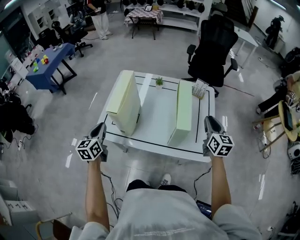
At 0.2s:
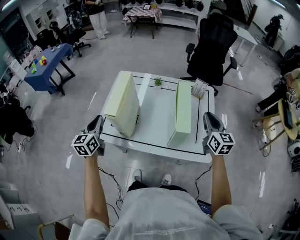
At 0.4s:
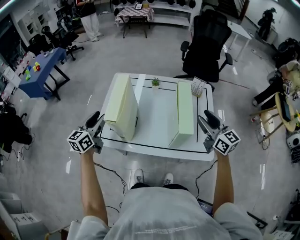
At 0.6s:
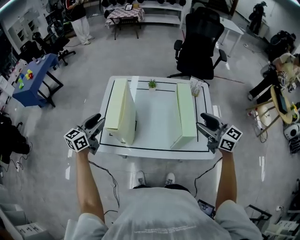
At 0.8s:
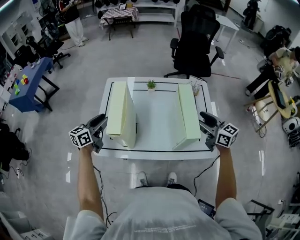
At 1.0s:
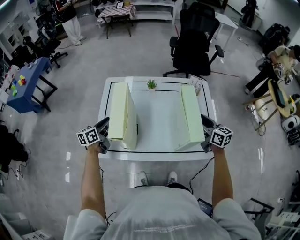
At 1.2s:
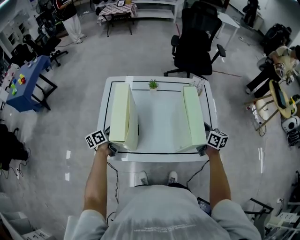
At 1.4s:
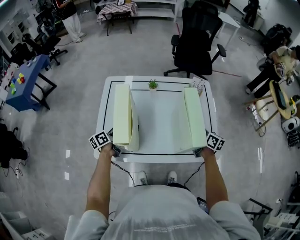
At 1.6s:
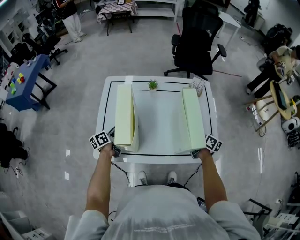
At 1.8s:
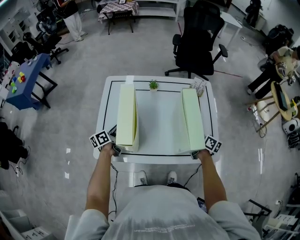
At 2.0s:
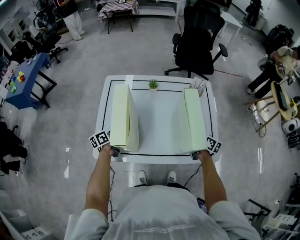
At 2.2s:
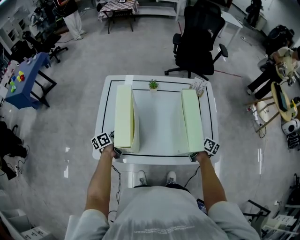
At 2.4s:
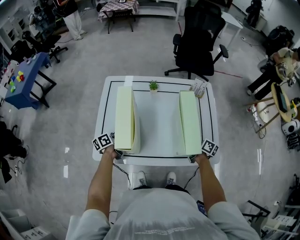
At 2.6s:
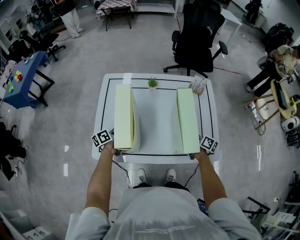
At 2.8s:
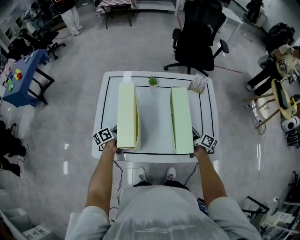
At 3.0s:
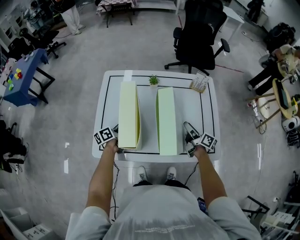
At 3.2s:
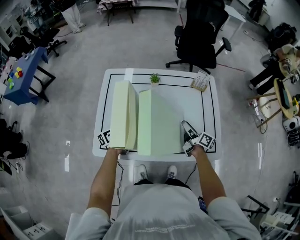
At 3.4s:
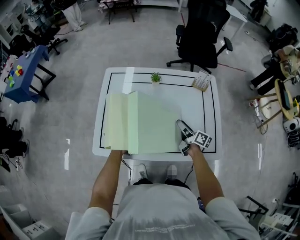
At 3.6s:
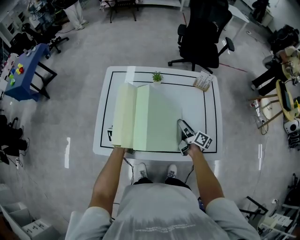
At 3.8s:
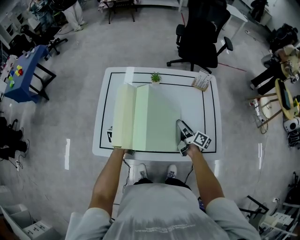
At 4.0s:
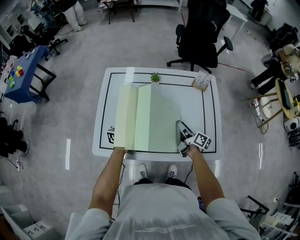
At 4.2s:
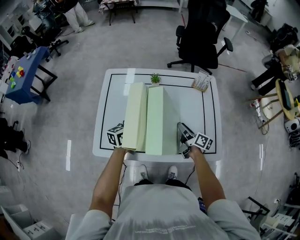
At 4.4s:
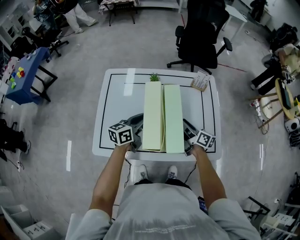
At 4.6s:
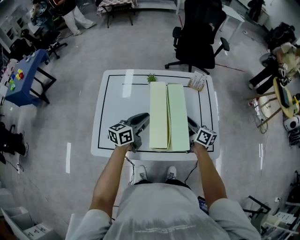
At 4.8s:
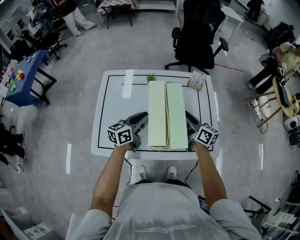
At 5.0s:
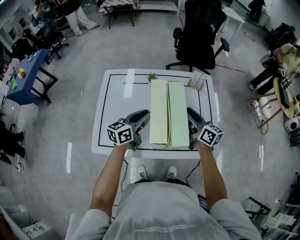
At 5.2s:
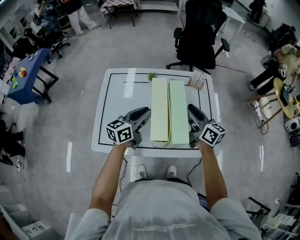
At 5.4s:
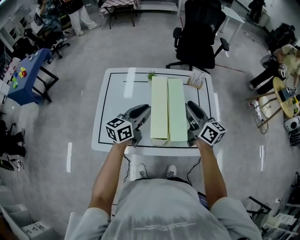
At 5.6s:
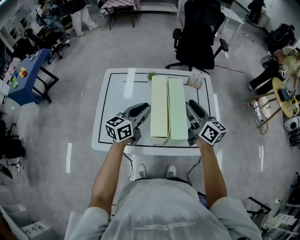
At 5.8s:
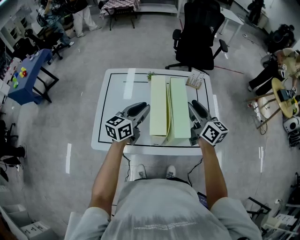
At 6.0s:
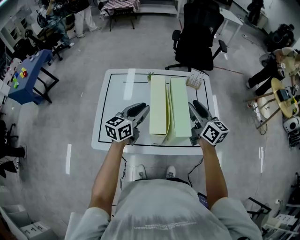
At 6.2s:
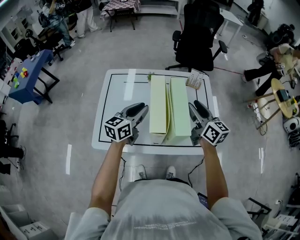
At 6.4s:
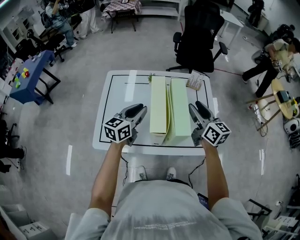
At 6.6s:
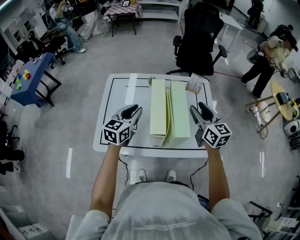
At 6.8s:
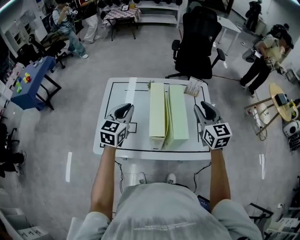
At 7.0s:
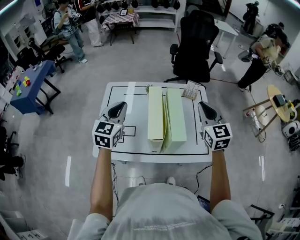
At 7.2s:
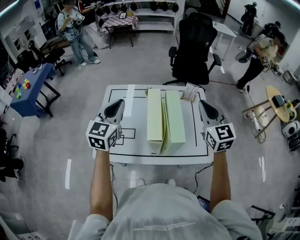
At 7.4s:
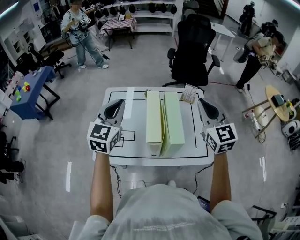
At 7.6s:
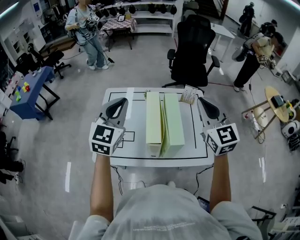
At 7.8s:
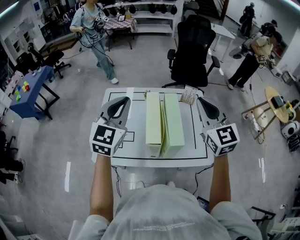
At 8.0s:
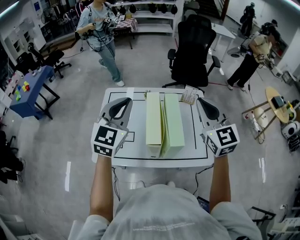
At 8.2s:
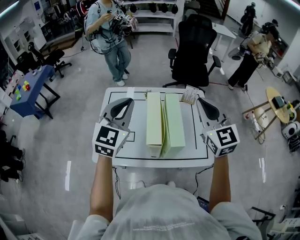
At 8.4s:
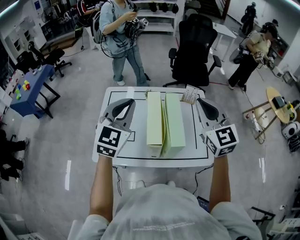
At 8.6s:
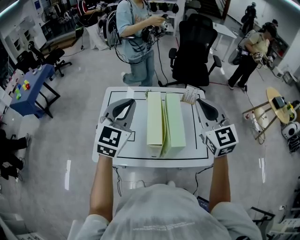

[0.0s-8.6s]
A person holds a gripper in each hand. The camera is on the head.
0.0s to 1.4s: The left gripper goes about 20 cm forward and downward, and turns by about 50 degrees, while the right gripper travels downward and to the left by approximately 15 cm, swivels approximately 40 degrees, and opens its fingers.
1.4s to 2.8s: The left gripper ends up approximately 5 cm from where it was, while the right gripper goes some 5 cm downward.
2.8s to 4.4s: The right gripper moves roughly 5 cm. The left gripper shifts roughly 15 cm to the right and upward, and swivels approximately 30 degrees.
4.4s to 5.8s: The right gripper moves upward, roughly 20 cm, and changes its angle by about 30 degrees. Meanwhile the left gripper moves upward, about 10 cm.
5.8s to 7.2s: The left gripper shifts some 15 cm upward and to the left, and rotates roughly 40 degrees. Meanwhile the right gripper shifts roughly 10 cm upward, rolls counterclockwise, seen from behind, by some 40 degrees, and closes its fingers.
7.2s to 8.6s: The right gripper ends up roughly 5 cm from where it was. Meanwhile the left gripper shifts roughly 5 cm to the right.

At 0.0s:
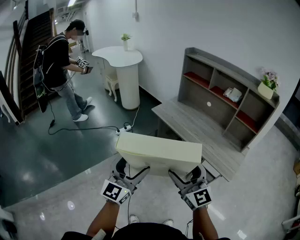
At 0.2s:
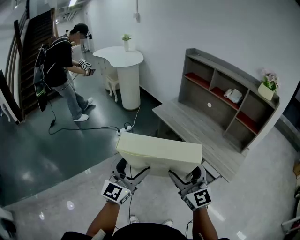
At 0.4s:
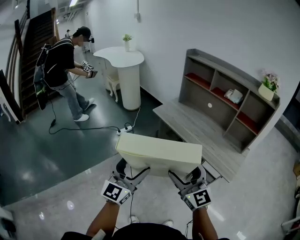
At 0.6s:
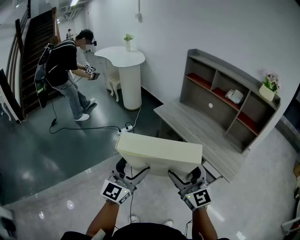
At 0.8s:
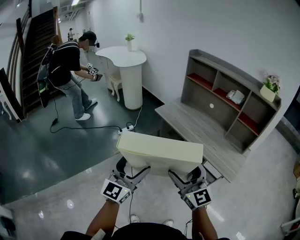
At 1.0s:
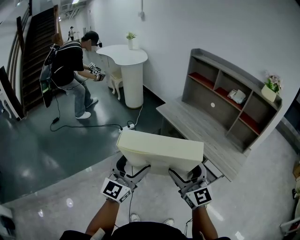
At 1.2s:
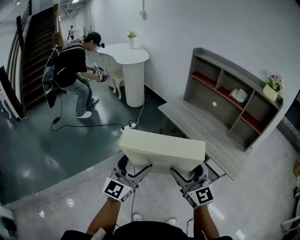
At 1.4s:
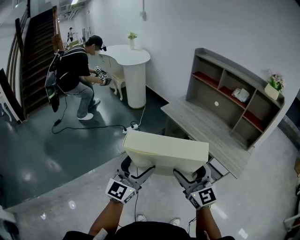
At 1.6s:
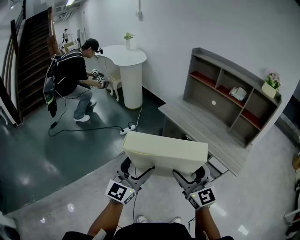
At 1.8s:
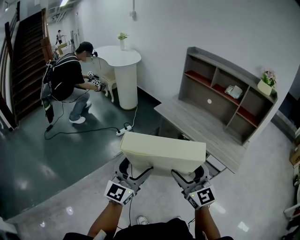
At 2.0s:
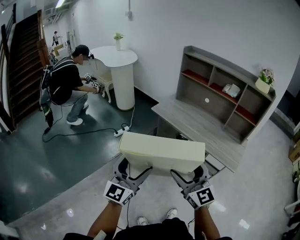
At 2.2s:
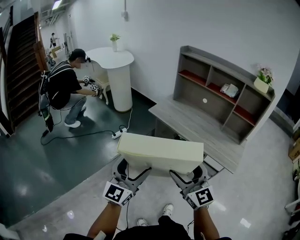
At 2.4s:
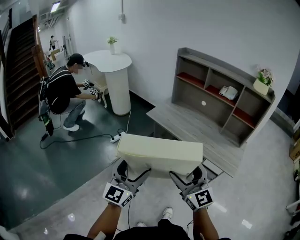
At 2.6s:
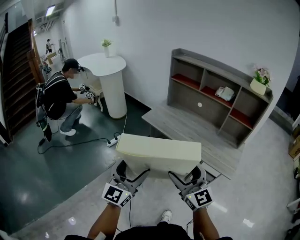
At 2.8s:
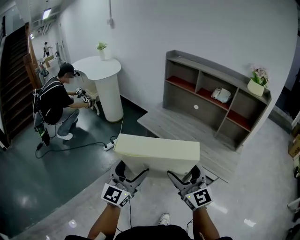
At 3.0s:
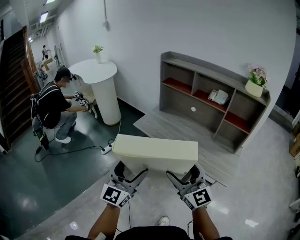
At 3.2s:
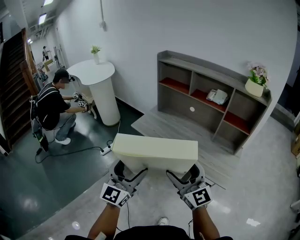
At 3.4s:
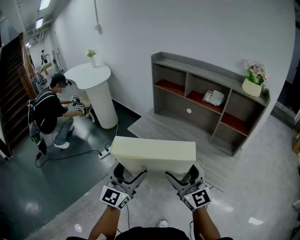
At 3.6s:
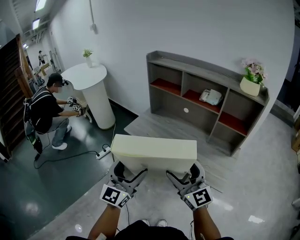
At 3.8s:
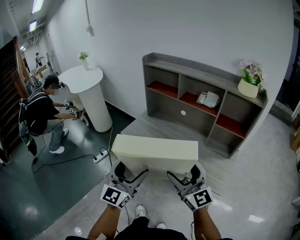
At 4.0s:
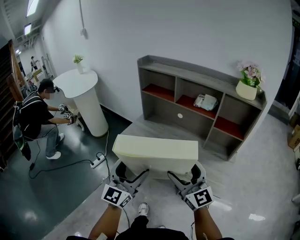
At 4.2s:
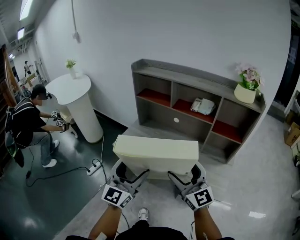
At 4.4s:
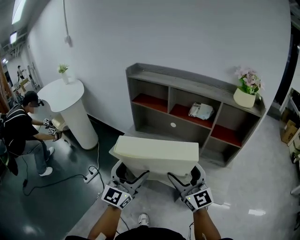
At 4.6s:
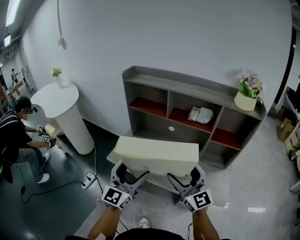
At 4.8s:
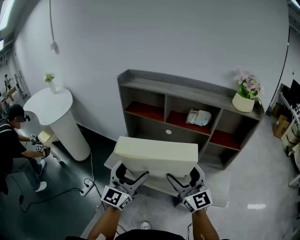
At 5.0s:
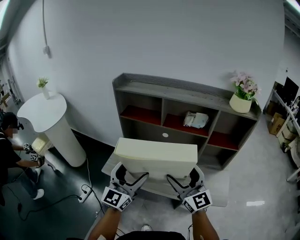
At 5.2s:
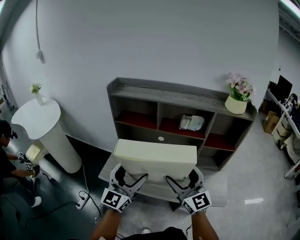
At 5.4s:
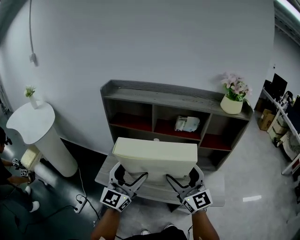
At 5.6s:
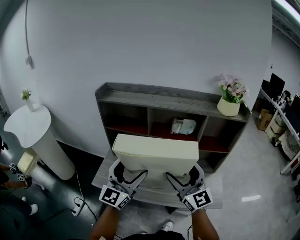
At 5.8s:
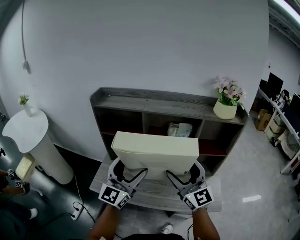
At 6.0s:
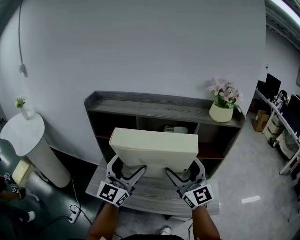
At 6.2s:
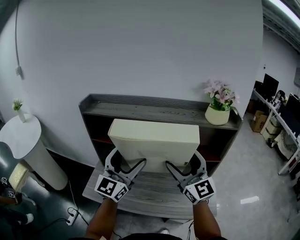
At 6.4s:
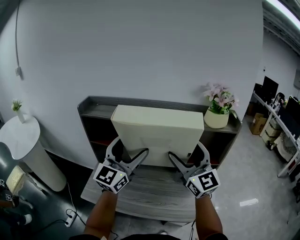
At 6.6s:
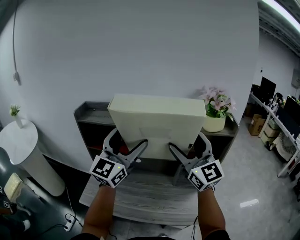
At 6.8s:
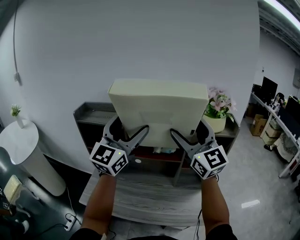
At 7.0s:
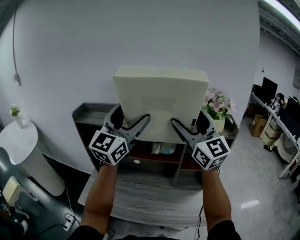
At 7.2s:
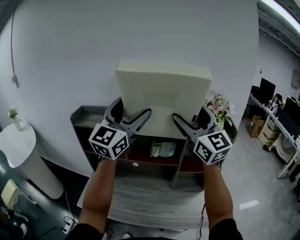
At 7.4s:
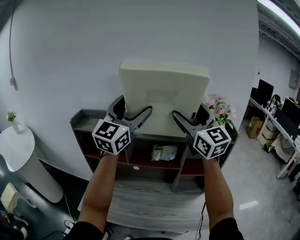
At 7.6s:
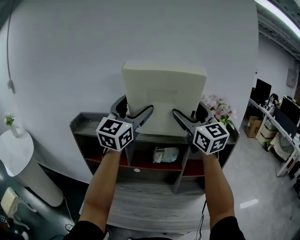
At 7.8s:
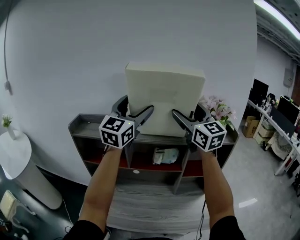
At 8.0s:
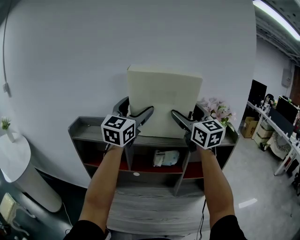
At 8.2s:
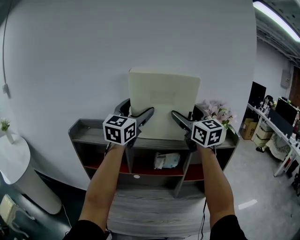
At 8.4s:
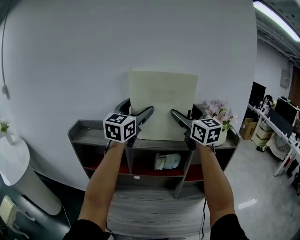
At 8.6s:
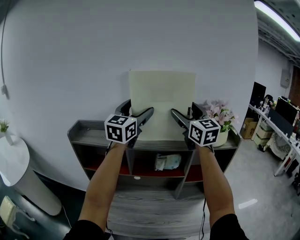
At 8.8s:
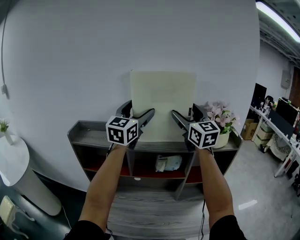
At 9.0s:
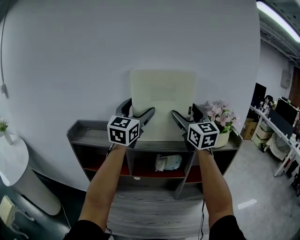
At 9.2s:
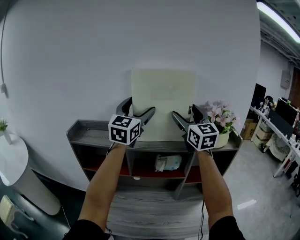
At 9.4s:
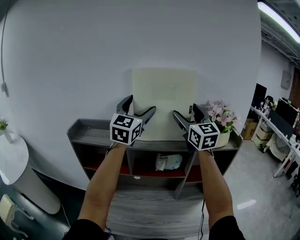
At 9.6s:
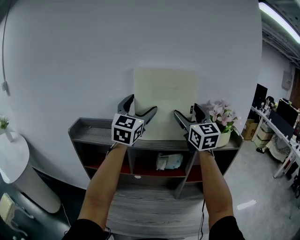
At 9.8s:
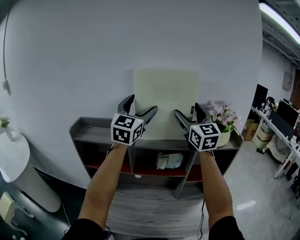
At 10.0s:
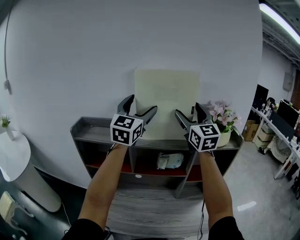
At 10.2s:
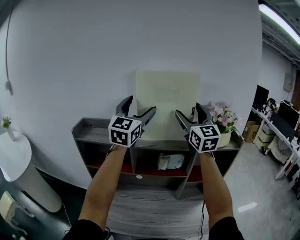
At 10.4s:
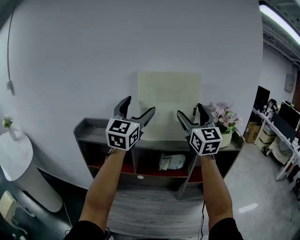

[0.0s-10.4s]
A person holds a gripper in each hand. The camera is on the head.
0.0s to 1.4s: Both grippers move to the left, approximately 5 cm.
1.4s to 3.0s: The two grippers go about 15 cm forward and to the right.
3.0s to 4.4s: The two grippers go about 25 cm forward and to the right.
4.4s to 6.0s: The right gripper goes roughly 15 cm forward and upward, while the left gripper is displaced forward by about 20 cm.
6.0s to 7.4s: Both grippers move upward and forward, about 30 cm.
7.4s to 9.0s: Both grippers move forward, about 10 cm.
9.0s to 10.4s: The left gripper moves backward, about 5 cm.

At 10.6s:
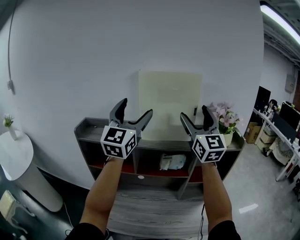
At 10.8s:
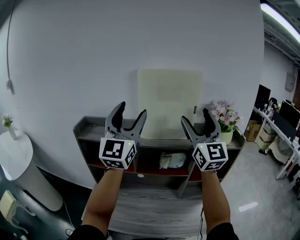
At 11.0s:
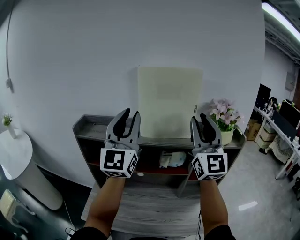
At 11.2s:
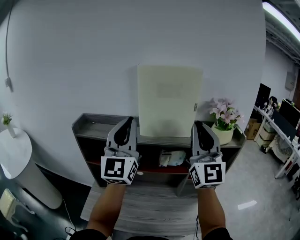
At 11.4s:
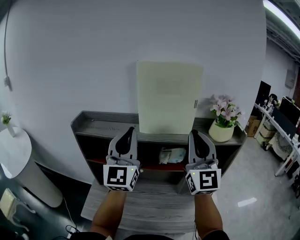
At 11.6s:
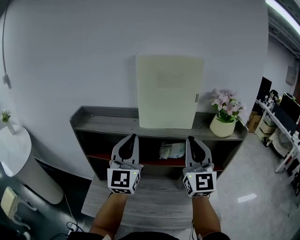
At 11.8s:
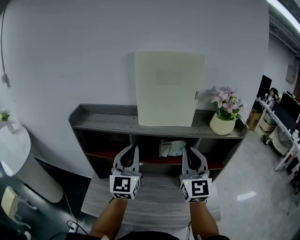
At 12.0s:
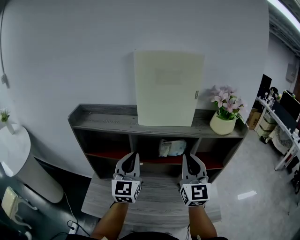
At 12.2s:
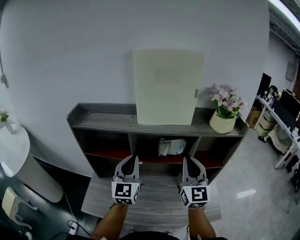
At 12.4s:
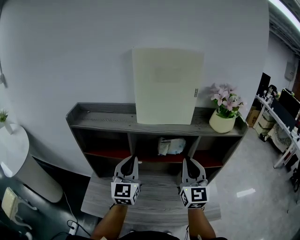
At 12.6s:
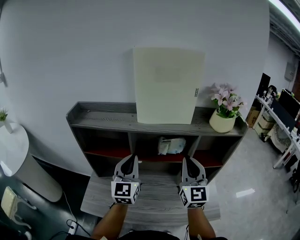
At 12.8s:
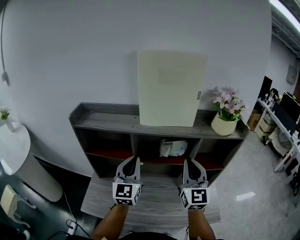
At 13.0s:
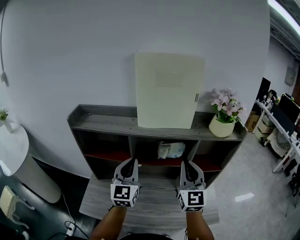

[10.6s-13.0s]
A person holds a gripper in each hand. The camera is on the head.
10.6s to 11.8s: The right gripper moves downward and backward, roughly 20 cm, and closes its fingers; the left gripper goes some 20 cm downward, and closes up.
11.8s to 13.0s: The two grippers go about 5 cm downward.

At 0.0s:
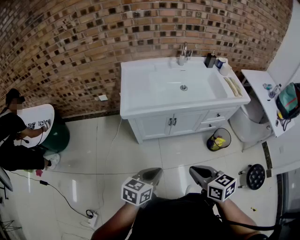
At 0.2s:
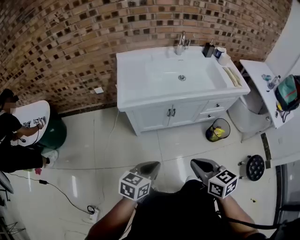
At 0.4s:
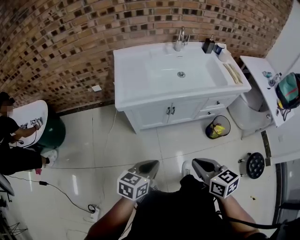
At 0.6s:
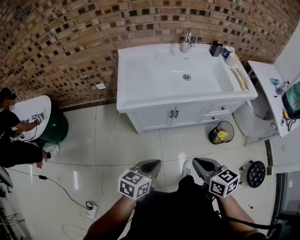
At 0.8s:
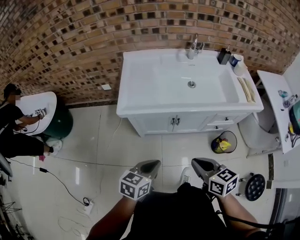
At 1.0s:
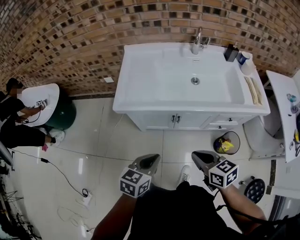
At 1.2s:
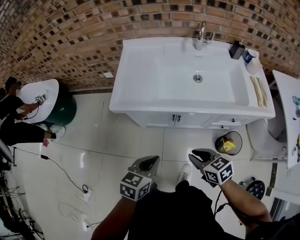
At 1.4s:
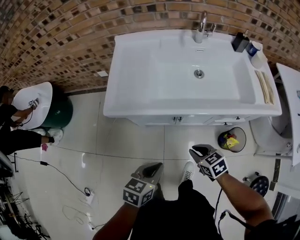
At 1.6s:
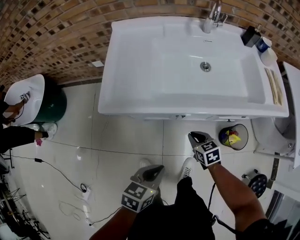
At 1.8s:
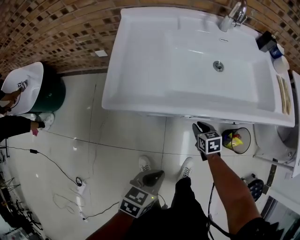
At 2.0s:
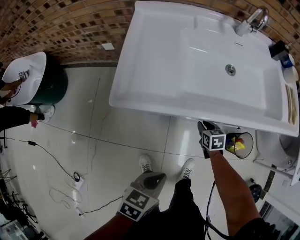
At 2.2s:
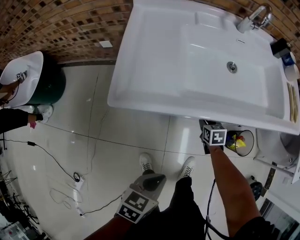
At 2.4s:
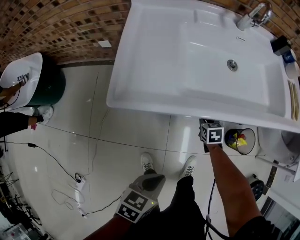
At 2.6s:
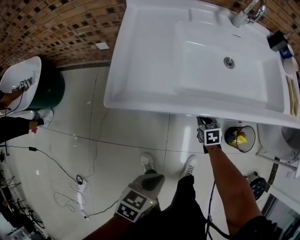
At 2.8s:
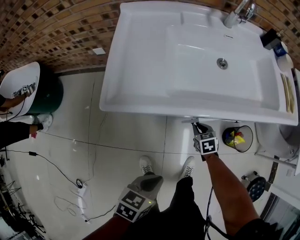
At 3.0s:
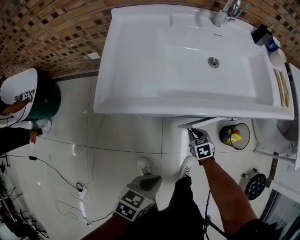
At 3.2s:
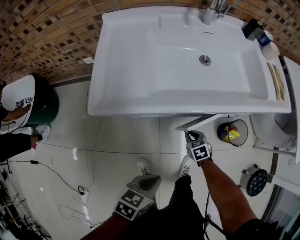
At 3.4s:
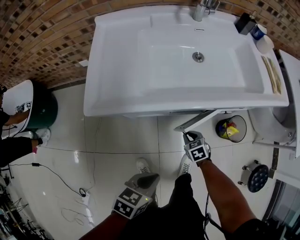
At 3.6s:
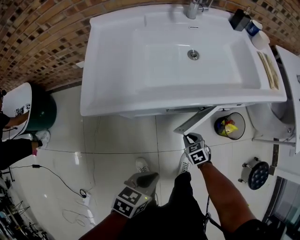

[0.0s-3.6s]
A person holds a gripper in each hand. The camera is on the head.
0.0s to 1.8s: The left gripper travels forward and downward by approximately 25 cm, while the right gripper moves forward and downward, about 50 cm, and changes its angle by roughly 20 degrees.
1.8s to 3.6s: The right gripper heads backward and to the right, covering about 10 cm.
